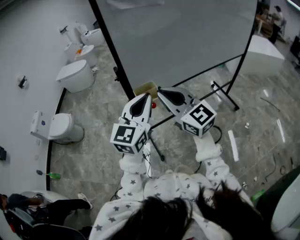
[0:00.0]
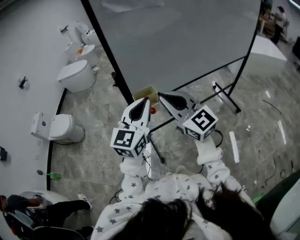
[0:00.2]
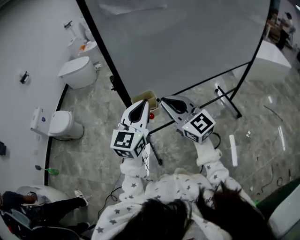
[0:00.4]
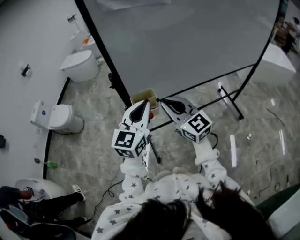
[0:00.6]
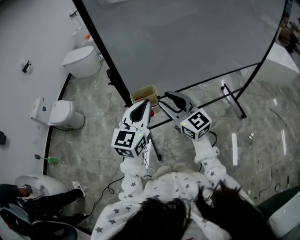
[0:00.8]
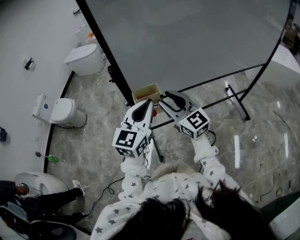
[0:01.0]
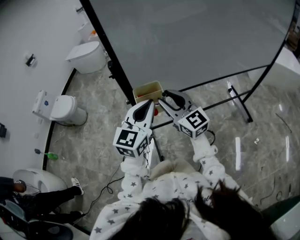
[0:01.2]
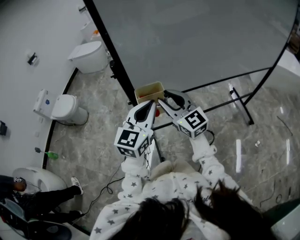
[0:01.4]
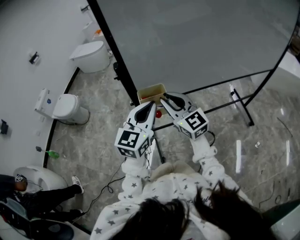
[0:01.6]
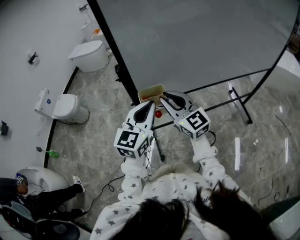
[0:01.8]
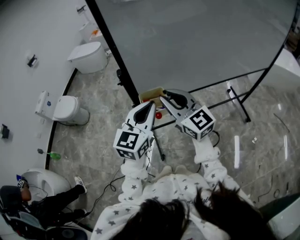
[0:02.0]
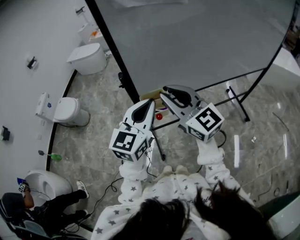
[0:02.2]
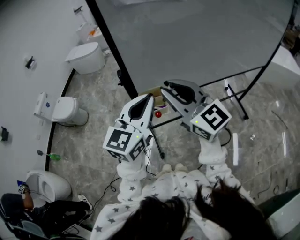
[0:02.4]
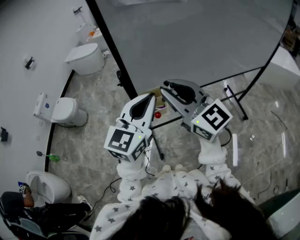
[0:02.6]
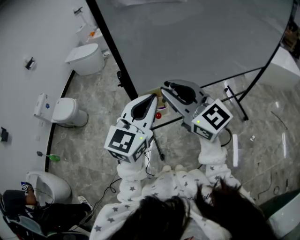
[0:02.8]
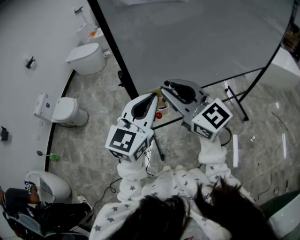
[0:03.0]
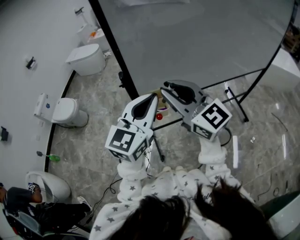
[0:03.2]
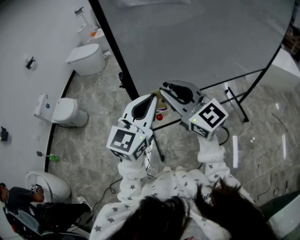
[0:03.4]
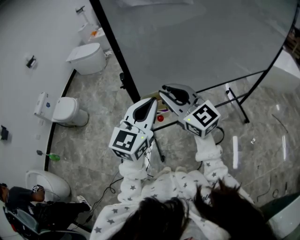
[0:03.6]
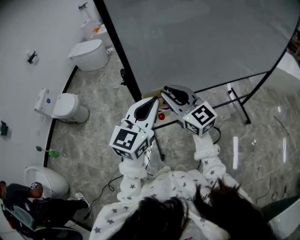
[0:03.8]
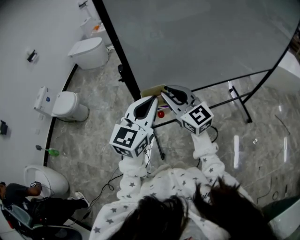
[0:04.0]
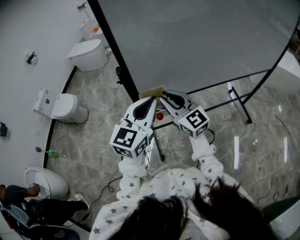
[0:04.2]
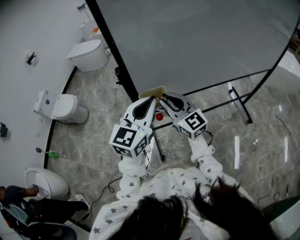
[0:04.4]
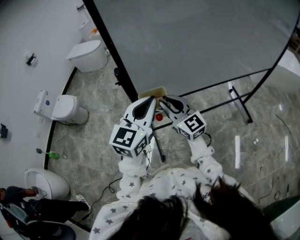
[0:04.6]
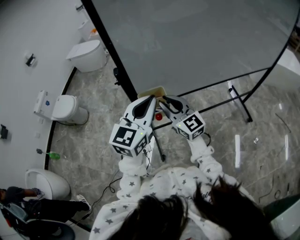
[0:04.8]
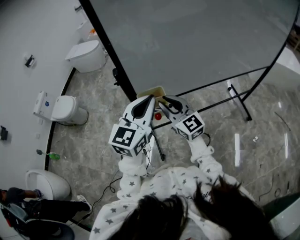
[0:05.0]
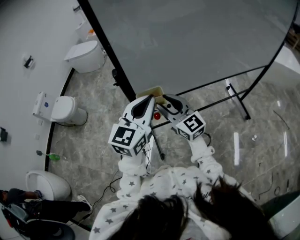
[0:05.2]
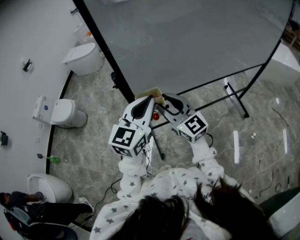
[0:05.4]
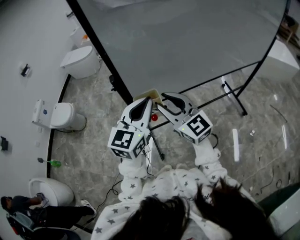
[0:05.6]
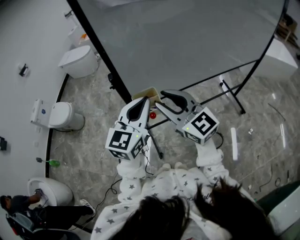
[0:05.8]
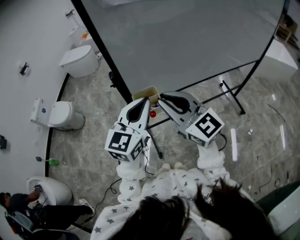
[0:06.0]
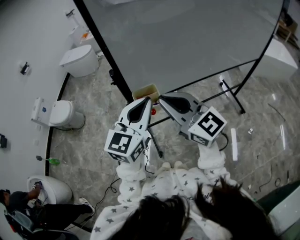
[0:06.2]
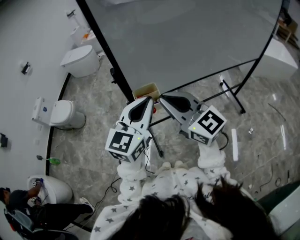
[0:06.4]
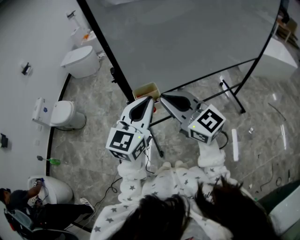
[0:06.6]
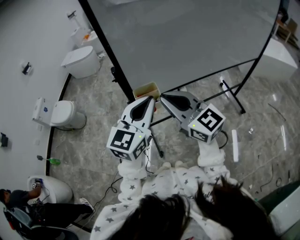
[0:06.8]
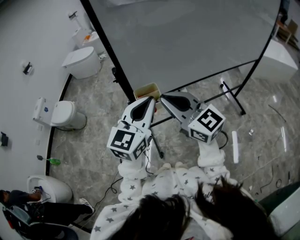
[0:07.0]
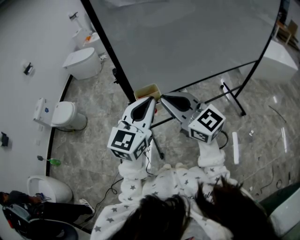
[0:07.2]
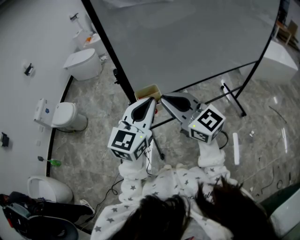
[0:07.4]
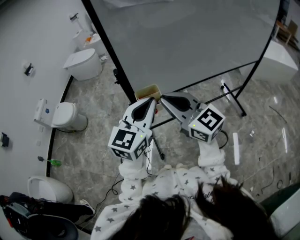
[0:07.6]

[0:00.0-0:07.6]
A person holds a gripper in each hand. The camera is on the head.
0.0 to 1.6 s: The two grippers go about 15 cm downward and forward.
1.6 to 3.0 s: Both grippers travel together upward, approximately 15 cm.
3.0 to 4.6 s: The right gripper goes some 20 cm downward. The left gripper travels downward by roughly 10 cm.
4.6 to 6.0 s: The right gripper moves upward and backward, some 15 cm. Meanwhile the left gripper changes place by approximately 5 cm.
6.0 to 7.6 s: The grippers move only a little.

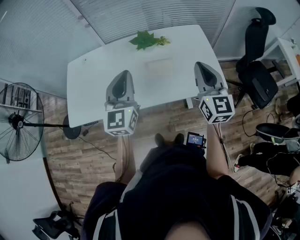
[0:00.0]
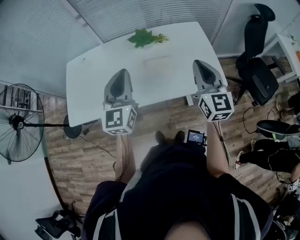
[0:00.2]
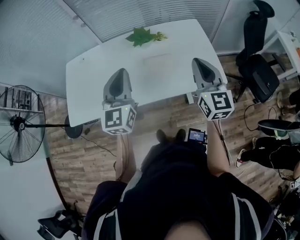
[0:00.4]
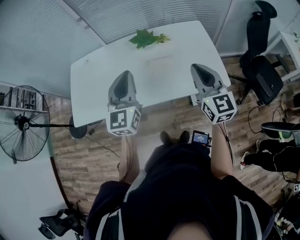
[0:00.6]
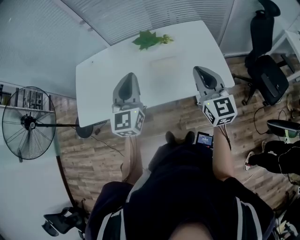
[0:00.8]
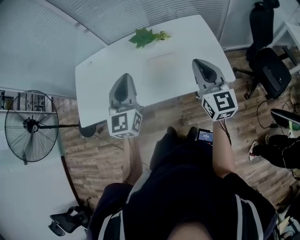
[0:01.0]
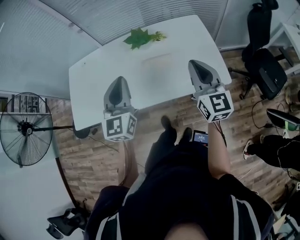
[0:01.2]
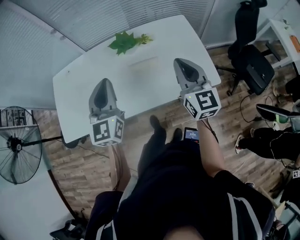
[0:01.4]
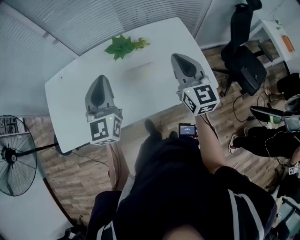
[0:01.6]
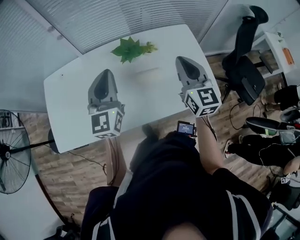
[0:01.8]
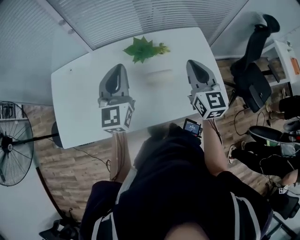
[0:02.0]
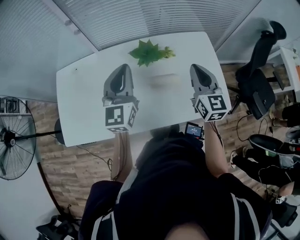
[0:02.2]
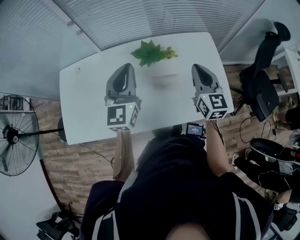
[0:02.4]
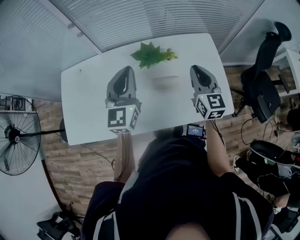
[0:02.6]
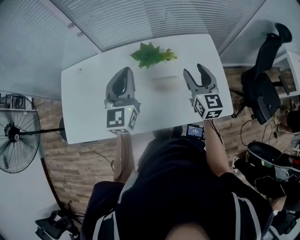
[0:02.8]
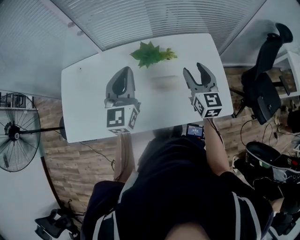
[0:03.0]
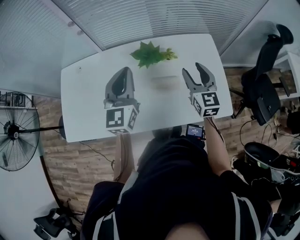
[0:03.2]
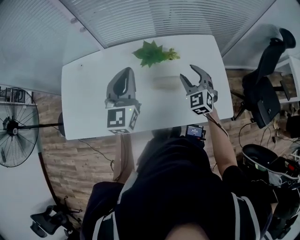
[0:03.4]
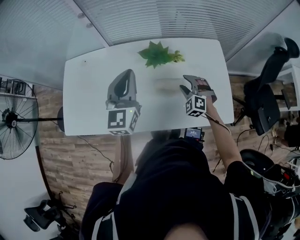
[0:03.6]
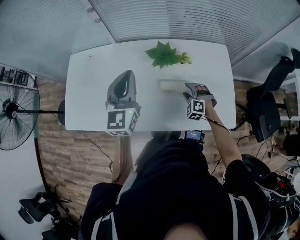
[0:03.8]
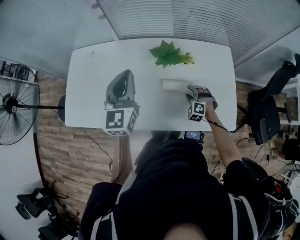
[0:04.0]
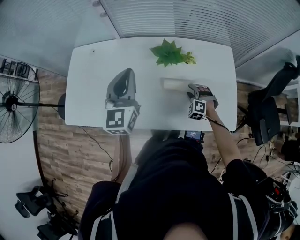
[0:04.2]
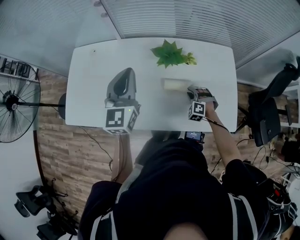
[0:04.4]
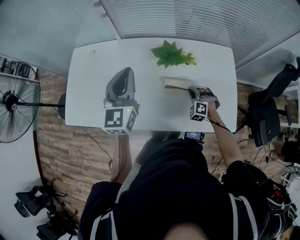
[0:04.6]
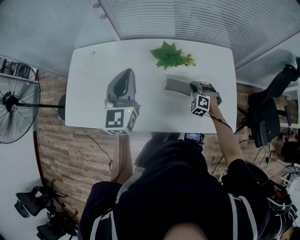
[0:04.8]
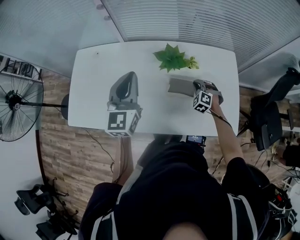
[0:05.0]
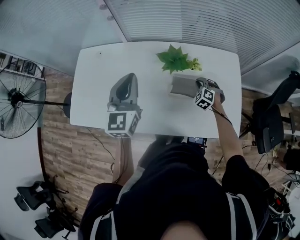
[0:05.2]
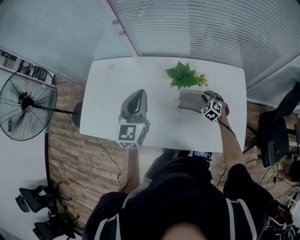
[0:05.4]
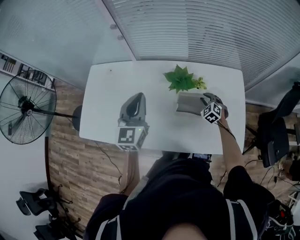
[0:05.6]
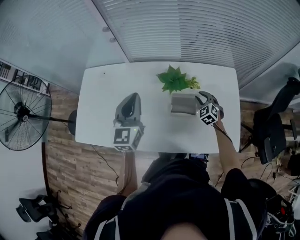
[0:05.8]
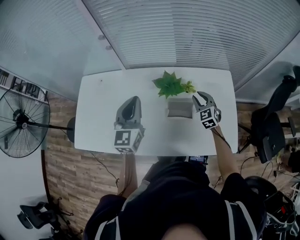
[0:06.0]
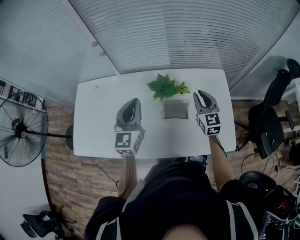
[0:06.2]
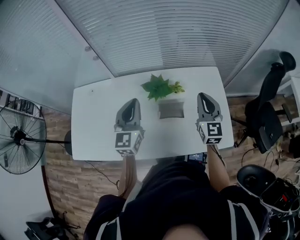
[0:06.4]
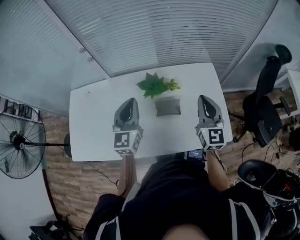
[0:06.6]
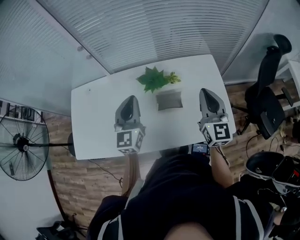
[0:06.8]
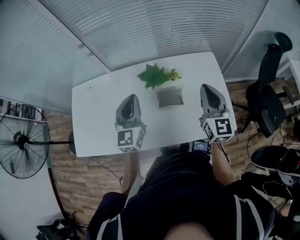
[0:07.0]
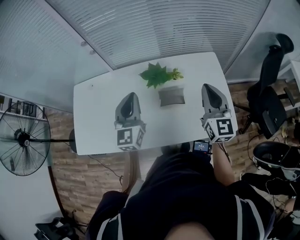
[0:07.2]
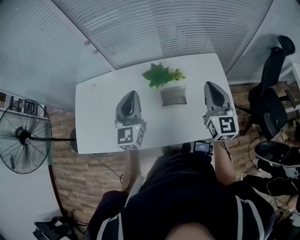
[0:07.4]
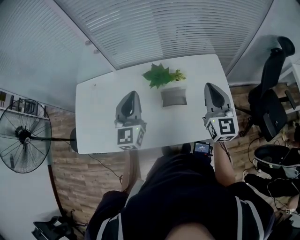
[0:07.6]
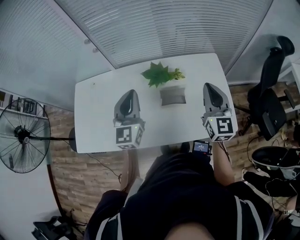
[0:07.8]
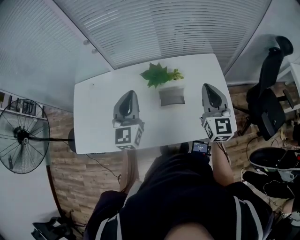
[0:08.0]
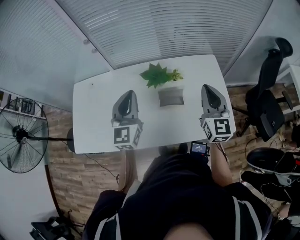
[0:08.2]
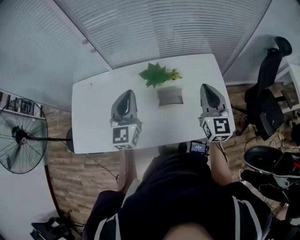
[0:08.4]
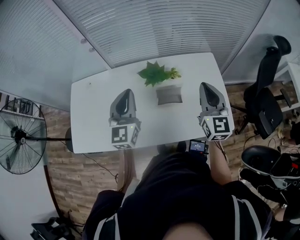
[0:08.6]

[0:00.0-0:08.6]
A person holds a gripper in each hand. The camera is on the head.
0.0 to 1.4 s: The grippers both shift forward by about 5 cm.
1.4 to 2.8 s: The two grippers go some 15 cm forward. The right gripper opens up.
2.8 to 4.4 s: The right gripper shifts roughly 30 cm downward, twists some 70 degrees counterclockwise, seen from behind, and closes its fingers, while the left gripper goes approximately 5 cm to the left.
4.4 to 5.8 s: The right gripper heads forward and upward, covering roughly 15 cm, and changes its angle by some 40 degrees.
5.8 to 7.2 s: The left gripper is displaced to the right by about 5 cm, while the right gripper travels upward and backward by approximately 30 cm, tilts its fingers some 40 degrees upward, and closes up.
7.2 to 8.6 s: The grippers make only small movements.

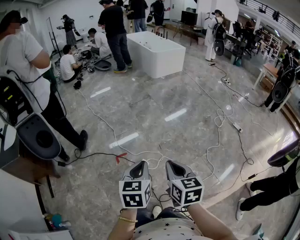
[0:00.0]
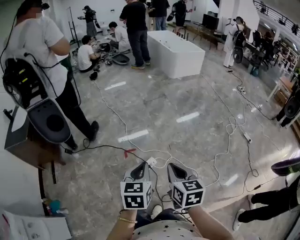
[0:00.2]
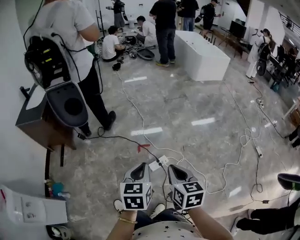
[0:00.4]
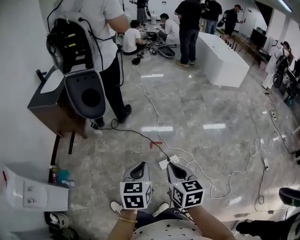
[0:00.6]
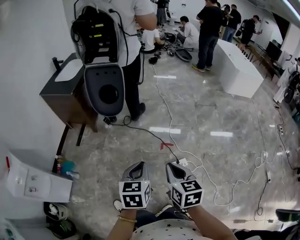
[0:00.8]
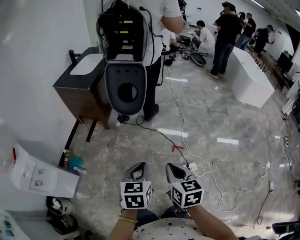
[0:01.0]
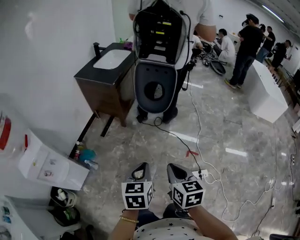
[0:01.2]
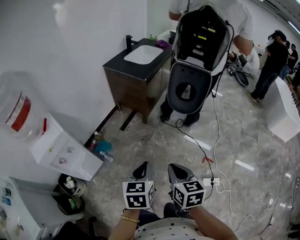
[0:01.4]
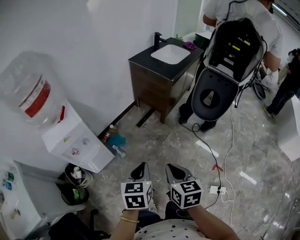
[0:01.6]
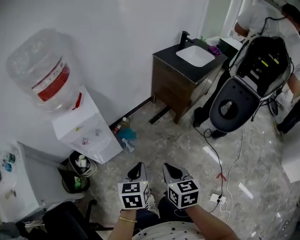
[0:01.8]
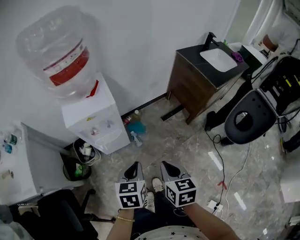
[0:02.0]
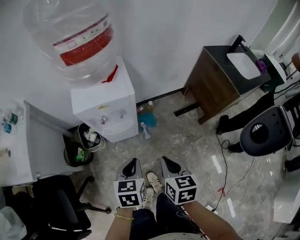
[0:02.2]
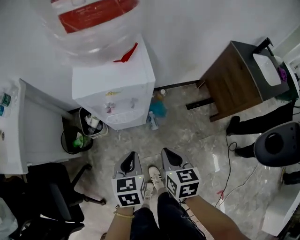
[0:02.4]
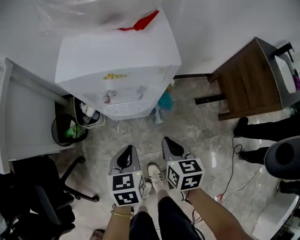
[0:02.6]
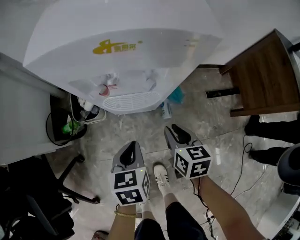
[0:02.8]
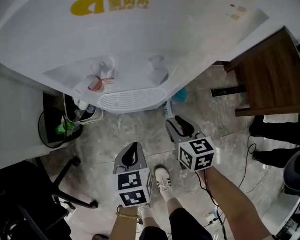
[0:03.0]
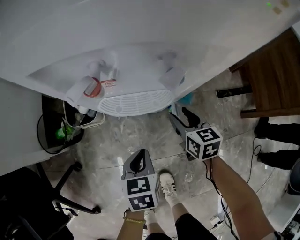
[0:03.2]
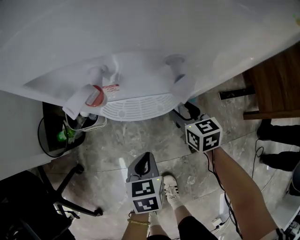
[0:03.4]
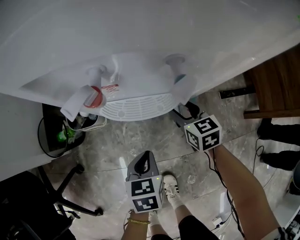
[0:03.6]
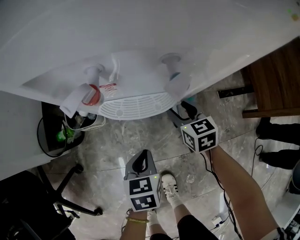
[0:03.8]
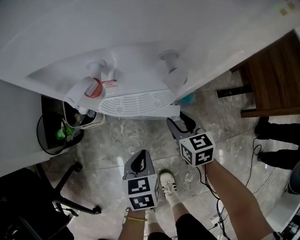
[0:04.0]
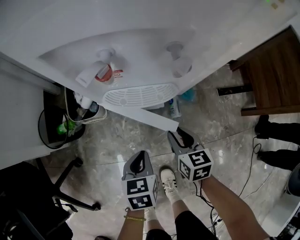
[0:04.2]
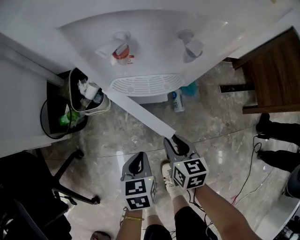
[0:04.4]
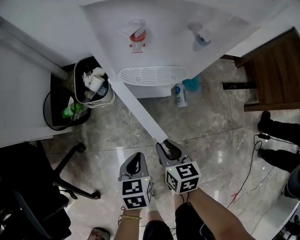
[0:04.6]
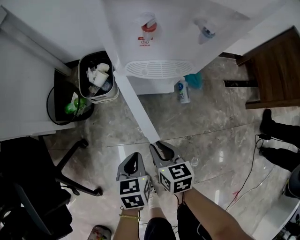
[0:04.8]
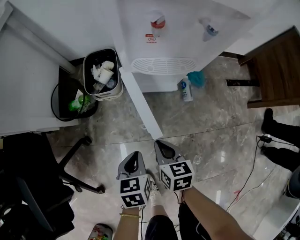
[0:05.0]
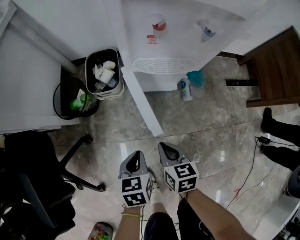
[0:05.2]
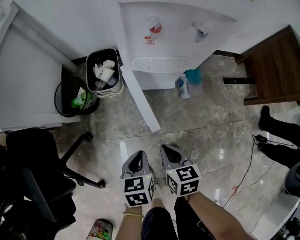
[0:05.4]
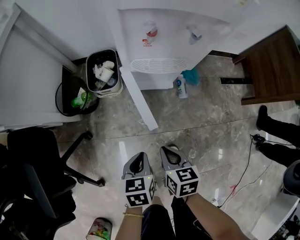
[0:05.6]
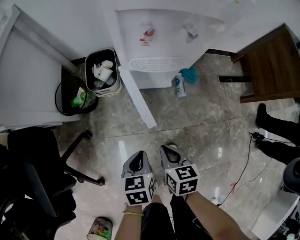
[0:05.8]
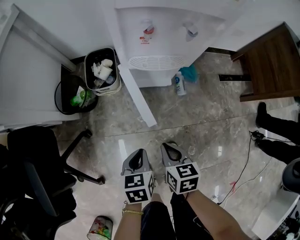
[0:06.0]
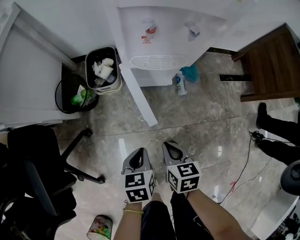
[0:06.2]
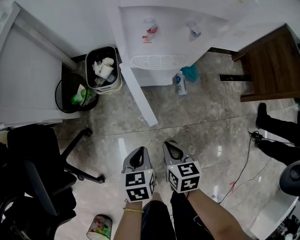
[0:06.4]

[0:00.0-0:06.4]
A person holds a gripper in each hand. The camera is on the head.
0.0 to 1.6 s: Both grippers are carried roughly 80 cm. The left gripper changes its angle by roughly 70 degrees. The right gripper rotates some 70 degrees.
1.6 to 3.2 s: Both grippers travel together downward, some 50 cm. The right gripper turns by roughly 50 degrees, and opens, while the left gripper swivels approximately 50 degrees.
3.2 to 4.8 s: The right gripper travels backward and to the left by some 25 cm, and closes up. Meanwhile the left gripper shifts approximately 15 cm backward and to the left.
4.8 to 6.4 s: The right gripper shifts approximately 10 cm upward and backward; the left gripper goes some 5 cm upward.

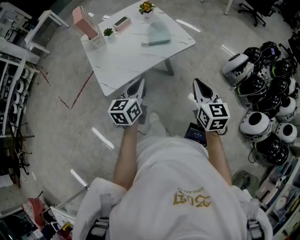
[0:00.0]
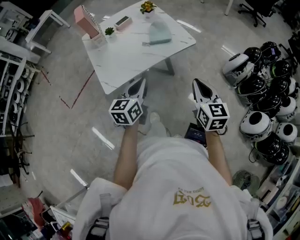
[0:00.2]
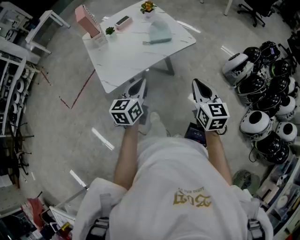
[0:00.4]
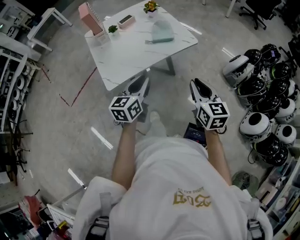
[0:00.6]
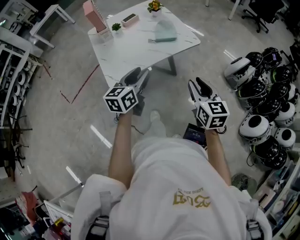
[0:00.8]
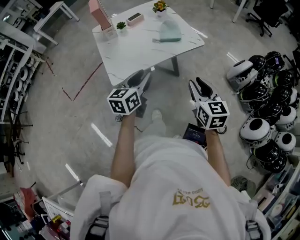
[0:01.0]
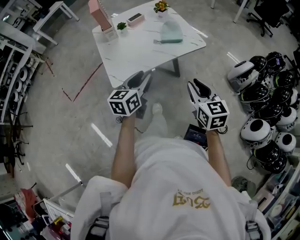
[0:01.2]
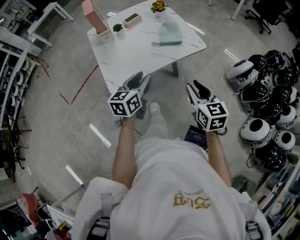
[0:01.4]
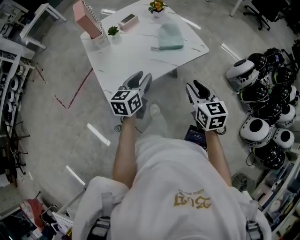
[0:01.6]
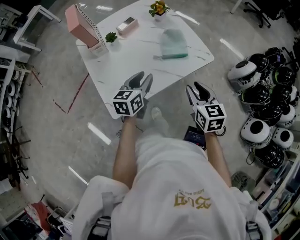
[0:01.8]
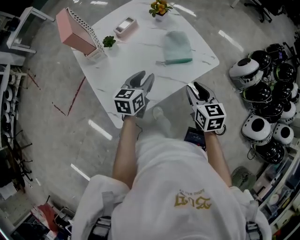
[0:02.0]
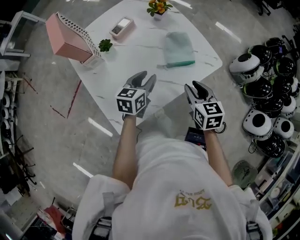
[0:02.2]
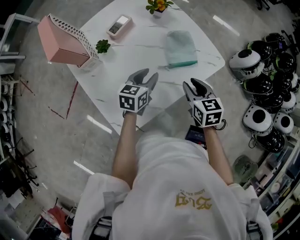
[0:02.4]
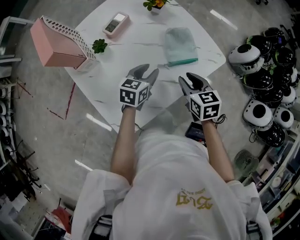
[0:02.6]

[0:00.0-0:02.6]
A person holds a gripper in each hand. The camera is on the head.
0.0 to 1.2 s: The left gripper opens up. Meanwhile the right gripper heads to the left, covering about 5 cm, and opens its fingers.
1.2 to 2.6 s: The right gripper is displaced forward, downward and to the left by roughly 40 cm, and swivels roughly 20 degrees. The left gripper is displaced forward and downward by some 40 cm, and changes its angle by roughly 30 degrees.
